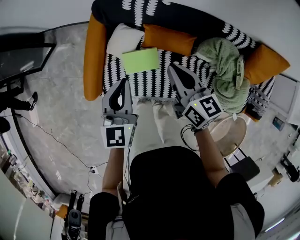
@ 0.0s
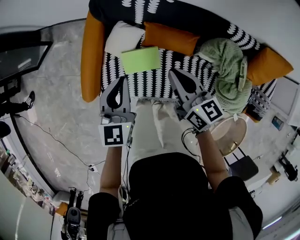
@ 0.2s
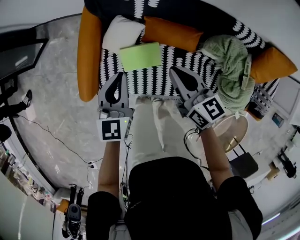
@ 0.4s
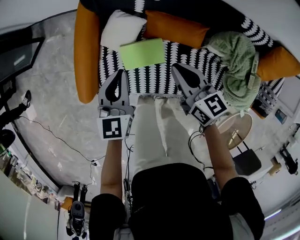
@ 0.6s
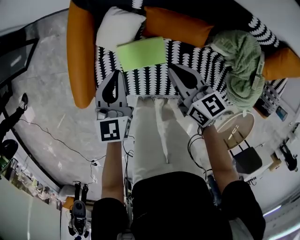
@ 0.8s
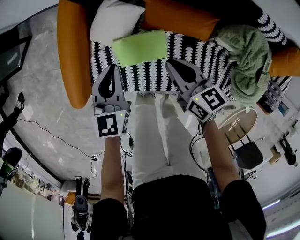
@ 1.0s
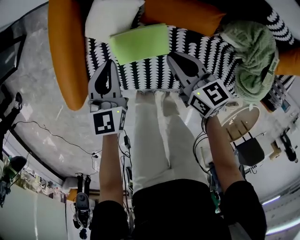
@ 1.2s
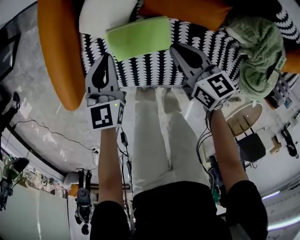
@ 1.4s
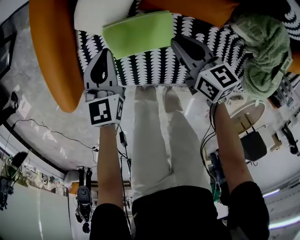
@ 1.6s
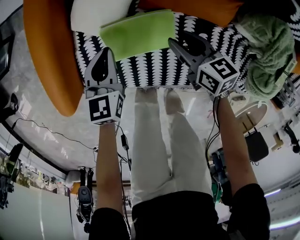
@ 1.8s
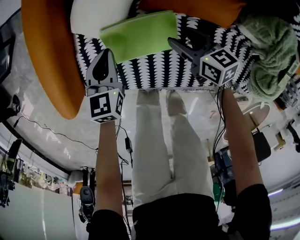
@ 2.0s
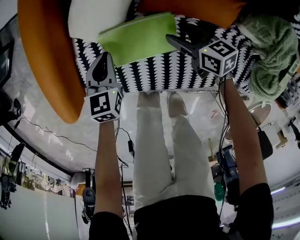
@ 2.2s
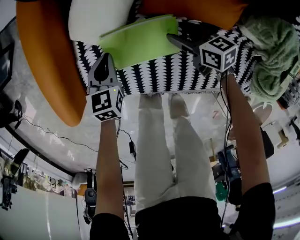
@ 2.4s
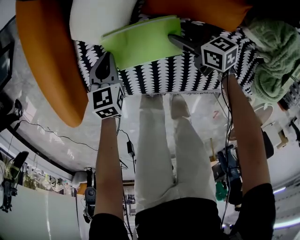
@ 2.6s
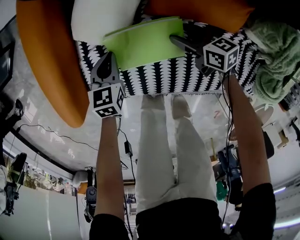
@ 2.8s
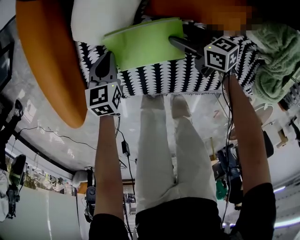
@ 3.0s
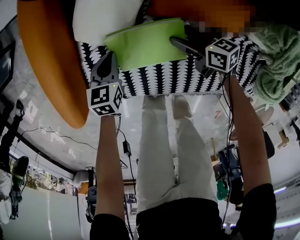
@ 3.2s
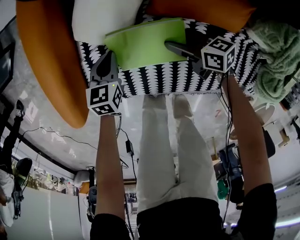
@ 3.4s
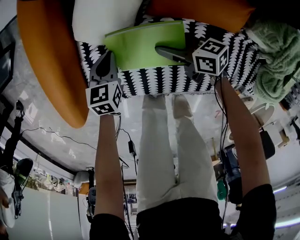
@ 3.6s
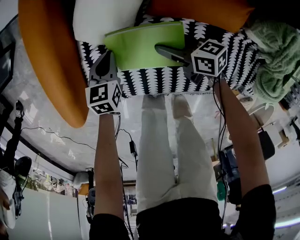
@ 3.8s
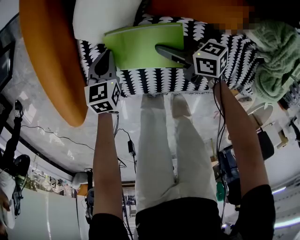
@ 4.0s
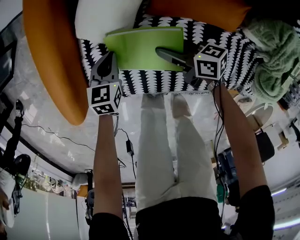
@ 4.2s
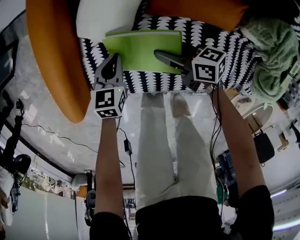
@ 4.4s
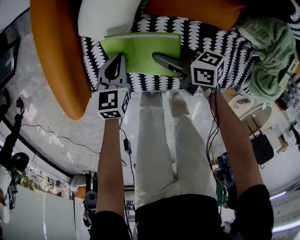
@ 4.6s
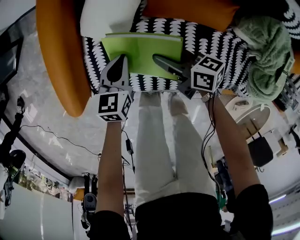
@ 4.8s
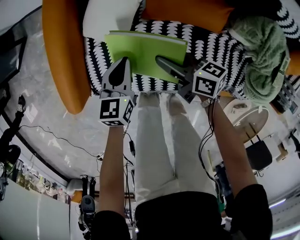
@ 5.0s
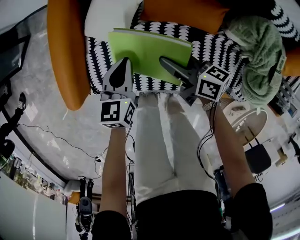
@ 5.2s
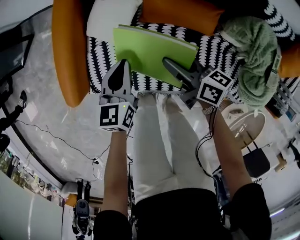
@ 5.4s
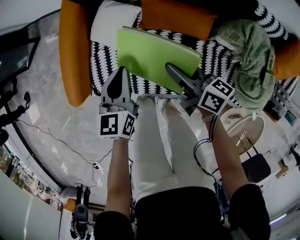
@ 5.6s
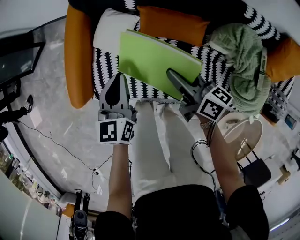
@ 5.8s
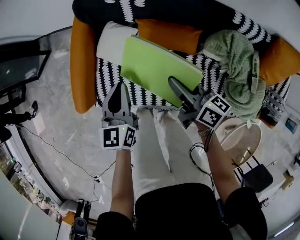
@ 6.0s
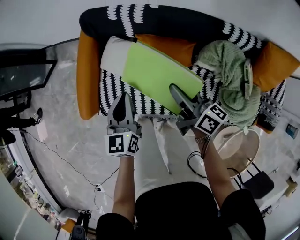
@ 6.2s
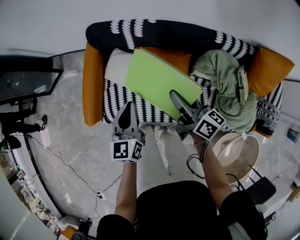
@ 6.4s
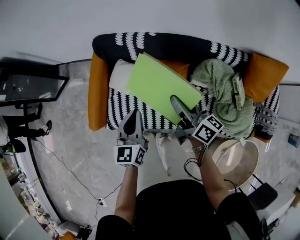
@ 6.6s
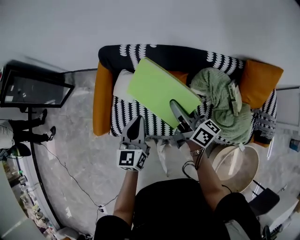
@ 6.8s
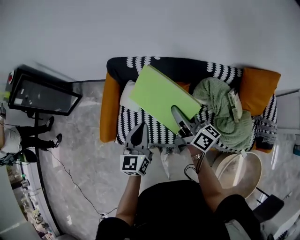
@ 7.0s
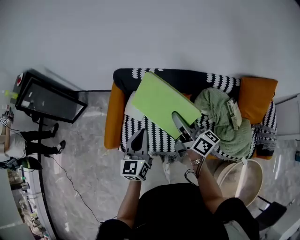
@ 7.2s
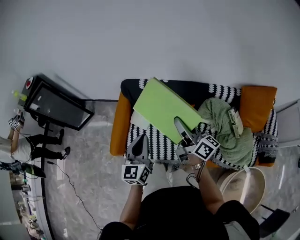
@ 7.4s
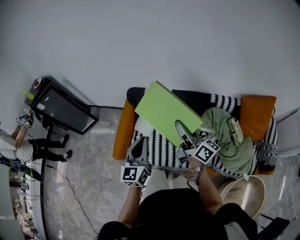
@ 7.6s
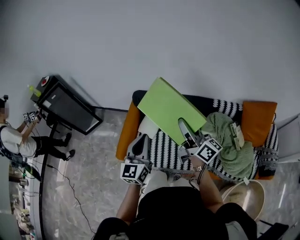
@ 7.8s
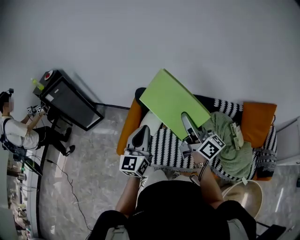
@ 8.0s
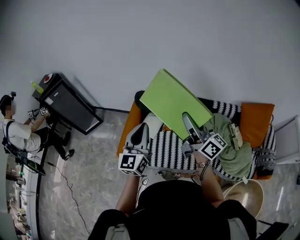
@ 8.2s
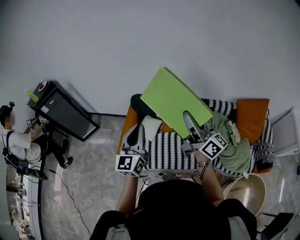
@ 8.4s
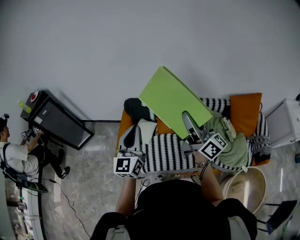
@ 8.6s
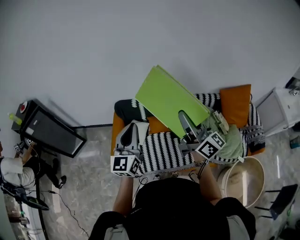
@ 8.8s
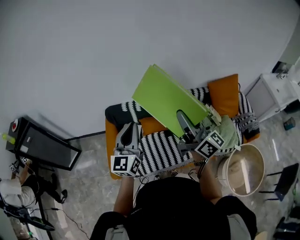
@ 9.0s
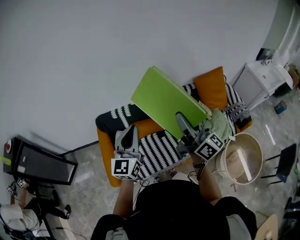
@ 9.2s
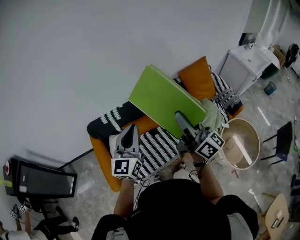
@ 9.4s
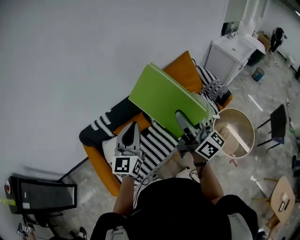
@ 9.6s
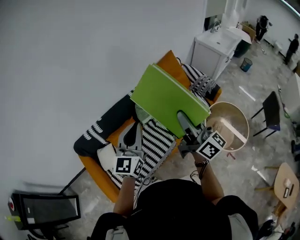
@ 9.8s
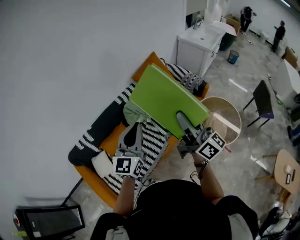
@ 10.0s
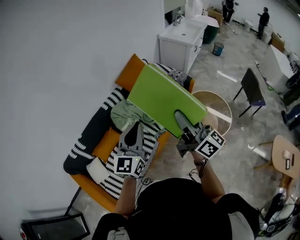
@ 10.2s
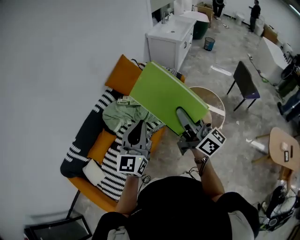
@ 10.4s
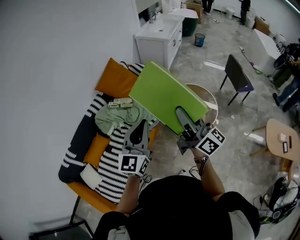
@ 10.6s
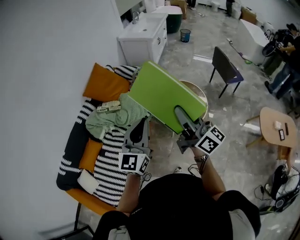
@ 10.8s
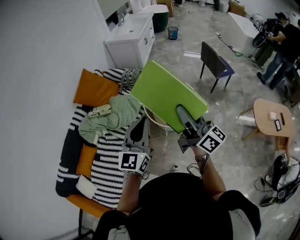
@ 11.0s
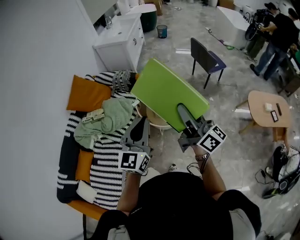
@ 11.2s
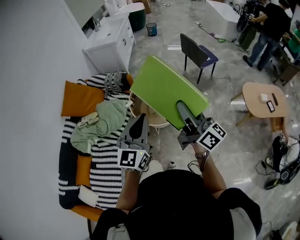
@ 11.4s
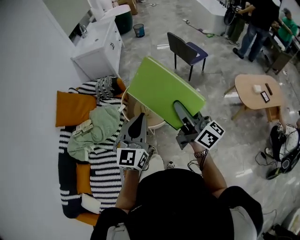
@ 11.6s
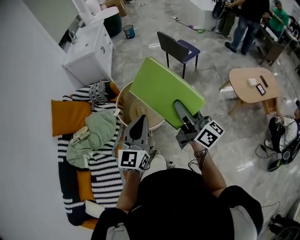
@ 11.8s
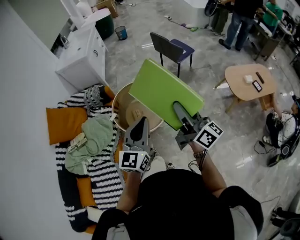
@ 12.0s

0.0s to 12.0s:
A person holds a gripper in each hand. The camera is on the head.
0.0s to 1.6s: The grippers both shift downward by approximately 35 cm. The right gripper changes its angle by about 20 degrees.
1.6s to 3.0s: The grippers both shift downward by roughly 15 cm. The right gripper opens its fingers.
3.0s to 4.4s: The right gripper goes approximately 10 cm to the left and upward, and closes its fingers.
4.4s to 6.0s: Both grippers move upward, roughly 30 cm. The left gripper swivels about 30 degrees. The right gripper changes its angle by approximately 30 degrees.
6.0s to 7.6s: Both grippers travel together upward, roughly 30 cm. The right gripper turns by approximately 30 degrees.
7.6s to 9.0s: The right gripper moves upward and backward, about 20 cm, and turns by some 30 degrees, while the left gripper shifts some 10 cm upward, and swivels about 20 degrees.
9.0s to 10.4s: Both grippers are carried approximately 40 cm. The right gripper swivels about 50 degrees. The left gripper rotates roughly 60 degrees.
10.4s to 12.0s: The pair of grippers is taken some 40 cm. The left gripper swivels approximately 40 degrees, while the right gripper swivels roughly 40 degrees.

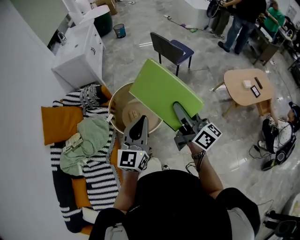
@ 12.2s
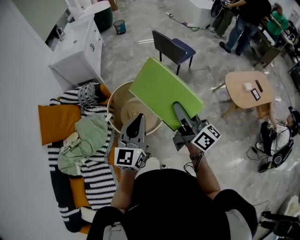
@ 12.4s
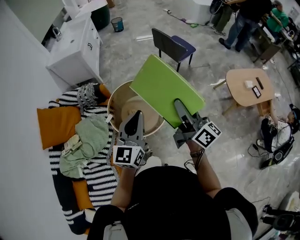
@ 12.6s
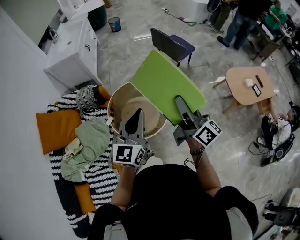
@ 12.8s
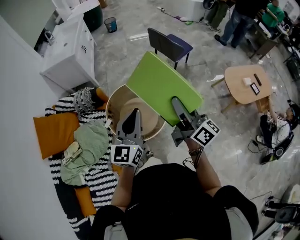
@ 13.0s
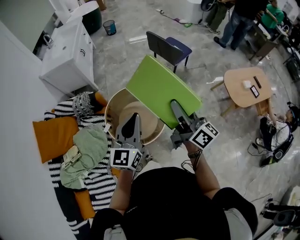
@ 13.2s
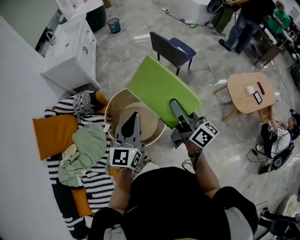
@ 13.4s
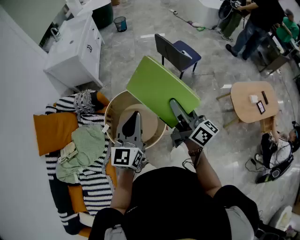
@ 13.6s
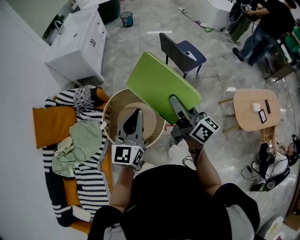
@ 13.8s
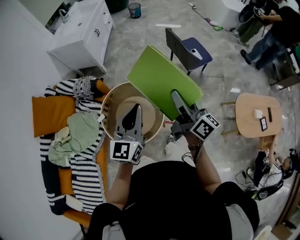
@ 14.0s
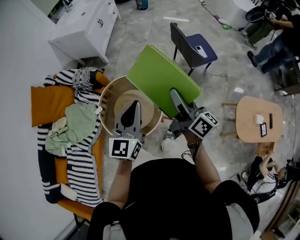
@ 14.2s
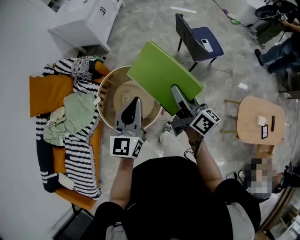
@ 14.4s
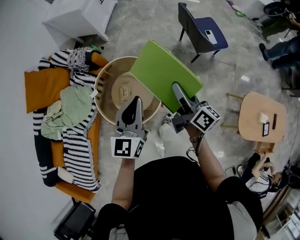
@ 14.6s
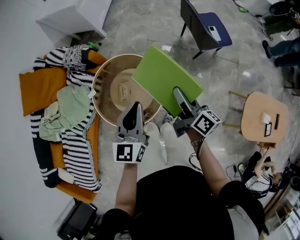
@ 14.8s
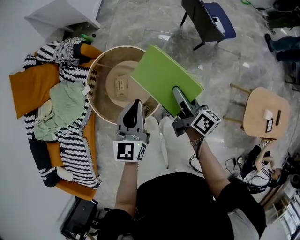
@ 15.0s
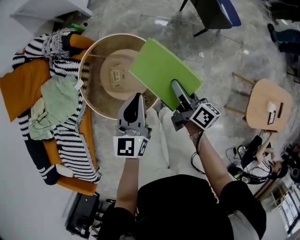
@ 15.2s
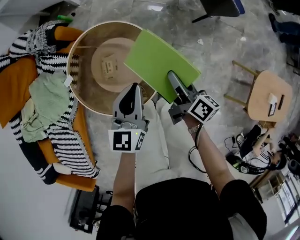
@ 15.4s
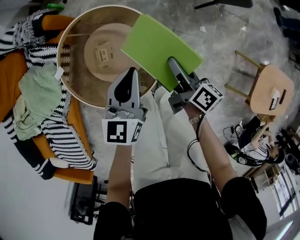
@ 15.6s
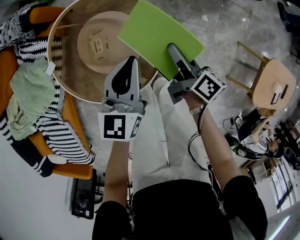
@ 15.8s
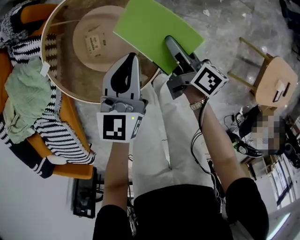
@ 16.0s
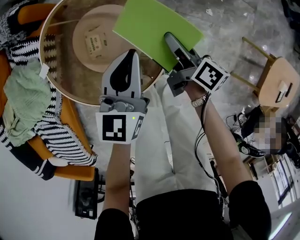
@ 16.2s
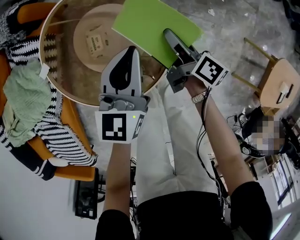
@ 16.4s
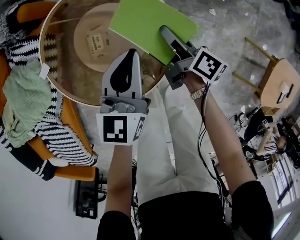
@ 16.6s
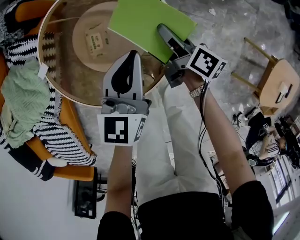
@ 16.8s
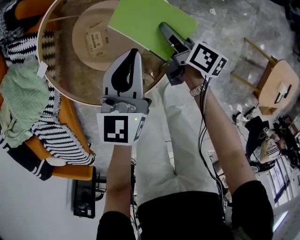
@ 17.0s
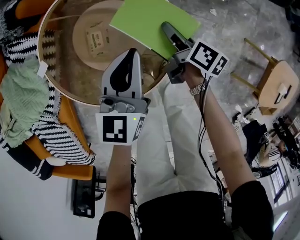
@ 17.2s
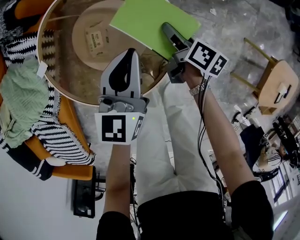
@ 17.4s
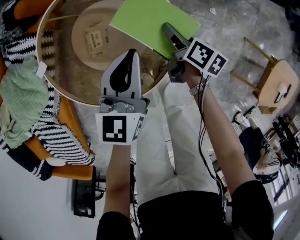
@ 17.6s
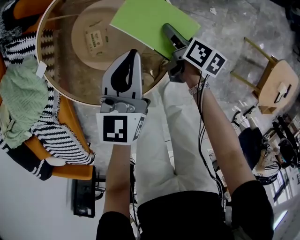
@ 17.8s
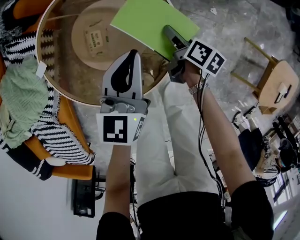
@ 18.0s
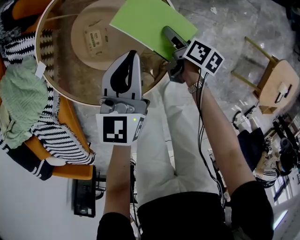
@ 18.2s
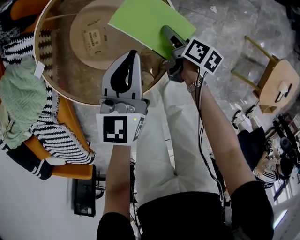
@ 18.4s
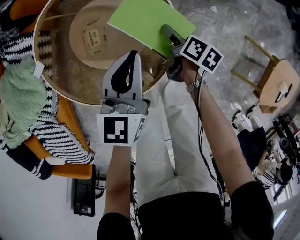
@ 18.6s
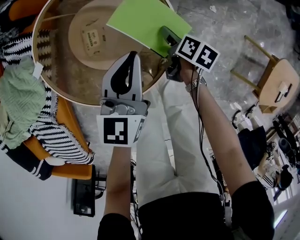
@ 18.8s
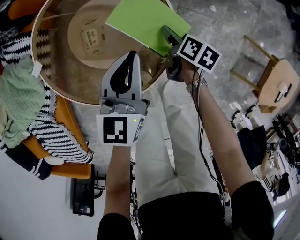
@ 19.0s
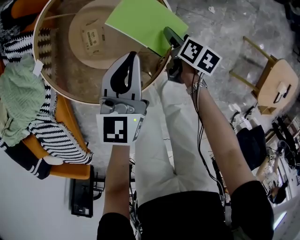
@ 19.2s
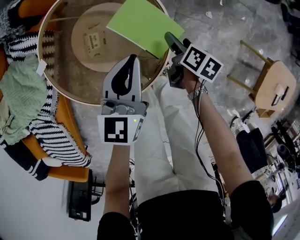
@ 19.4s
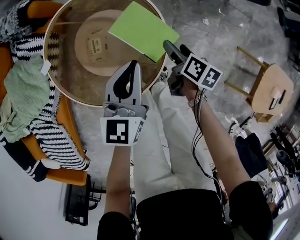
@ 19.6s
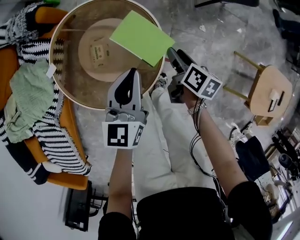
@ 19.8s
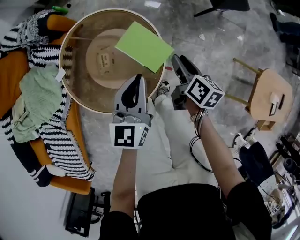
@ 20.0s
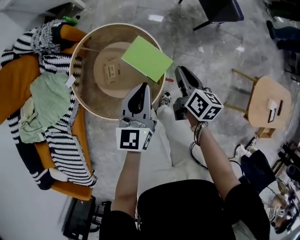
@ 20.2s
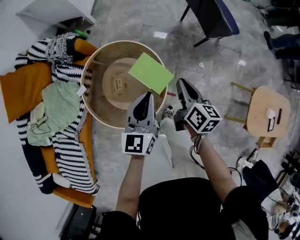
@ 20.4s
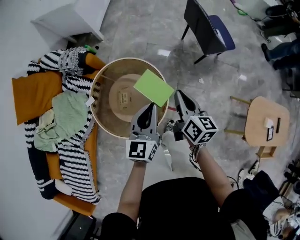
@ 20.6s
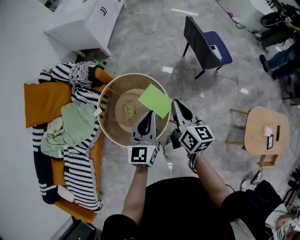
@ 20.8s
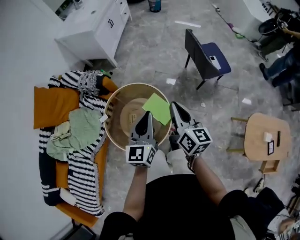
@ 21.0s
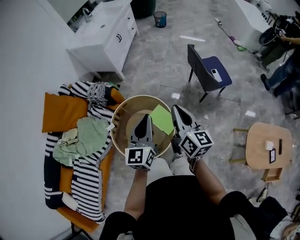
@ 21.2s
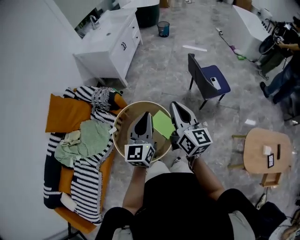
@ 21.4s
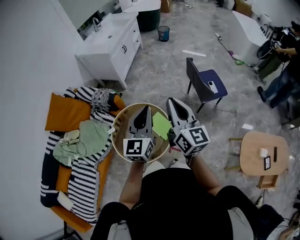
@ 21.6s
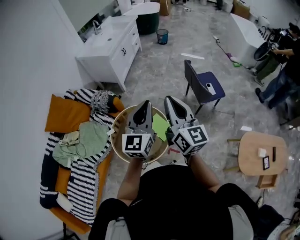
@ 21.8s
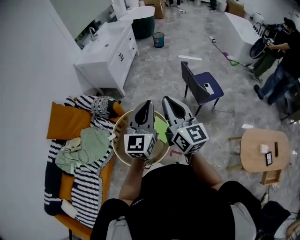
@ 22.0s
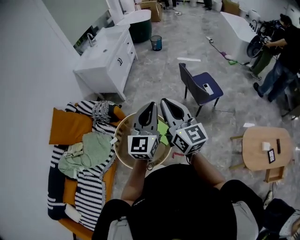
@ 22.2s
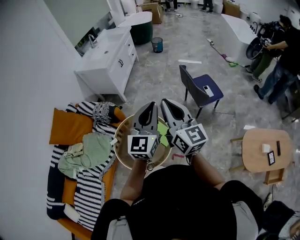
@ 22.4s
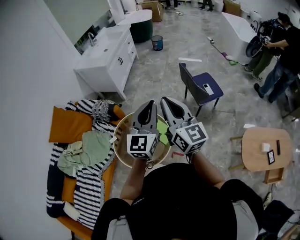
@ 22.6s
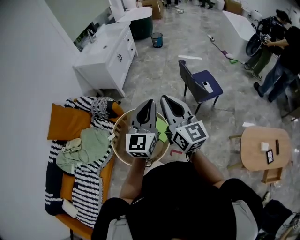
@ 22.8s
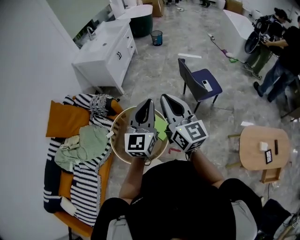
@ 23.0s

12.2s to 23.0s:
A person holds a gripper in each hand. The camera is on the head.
12.2s to 13.8s: The grippers both shift forward by roughly 30 cm.
13.8s to 15.2s: The left gripper travels downward and forward by some 30 cm, and rotates roughly 30 degrees; the right gripper shifts some 35 cm downward, and turns by roughly 40 degrees.
15.2s to 16.8s: Both grippers travel together downward, some 25 cm.
16.8s to 18.4s: The right gripper goes roughly 10 cm downward, turns by about 20 degrees, and opens.
18.4s to 20.0s: The left gripper goes approximately 10 cm upward. The right gripper travels upward by approximately 20 cm, changes its angle by about 20 degrees, and closes.
20.0s to 21.4s: Both grippers travel together upward, about 50 cm. The right gripper tips its fingers upward by some 40 degrees, and closes; the left gripper changes its angle by some 20 degrees.
21.4s to 23.0s: The right gripper is displaced upward and backward by about 10 cm. Meanwhile the left gripper moves upward and to the right, roughly 10 cm.

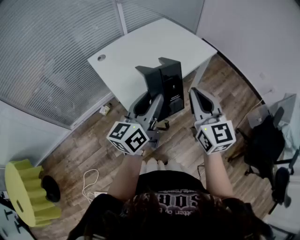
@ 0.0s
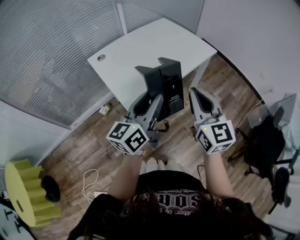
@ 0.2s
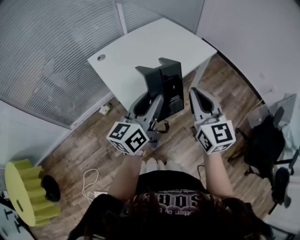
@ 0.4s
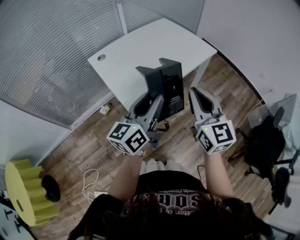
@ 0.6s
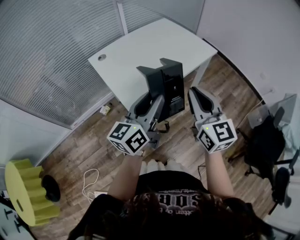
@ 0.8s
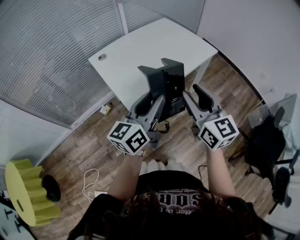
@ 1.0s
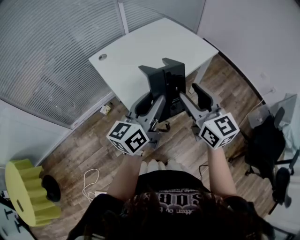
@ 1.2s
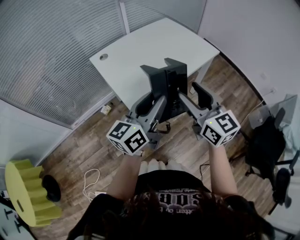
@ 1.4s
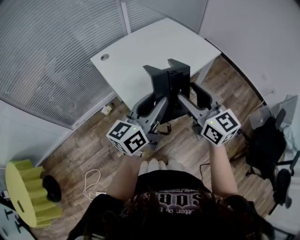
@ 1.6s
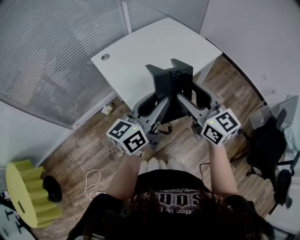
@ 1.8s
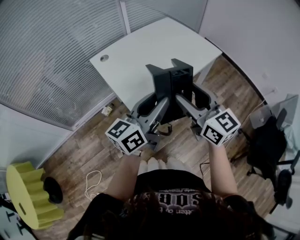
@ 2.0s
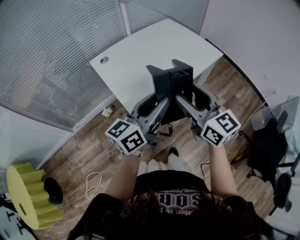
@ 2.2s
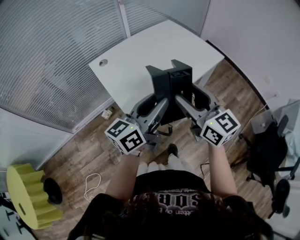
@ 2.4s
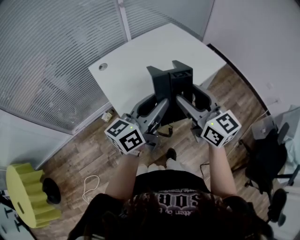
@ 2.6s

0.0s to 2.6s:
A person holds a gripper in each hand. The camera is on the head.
0.0s to 1.2s: The right gripper opens up.
1.2s to 2.6s: The grippers both shift forward by approximately 10 cm.
